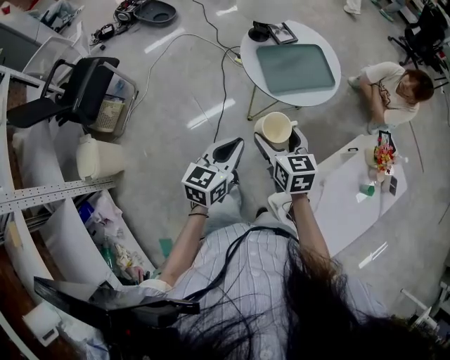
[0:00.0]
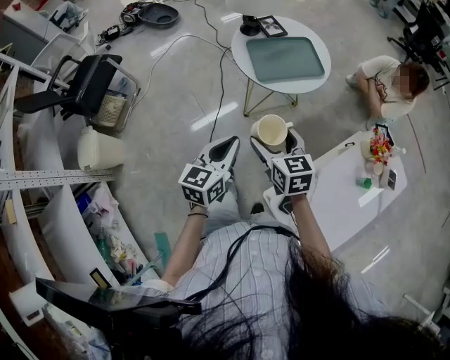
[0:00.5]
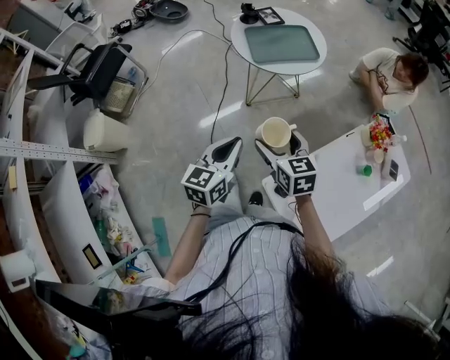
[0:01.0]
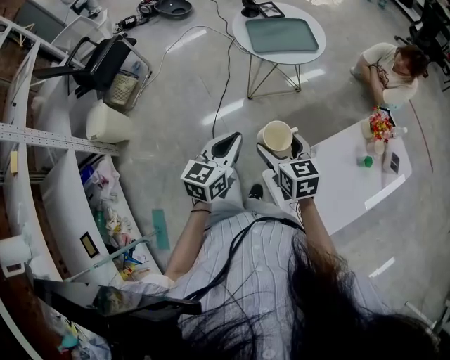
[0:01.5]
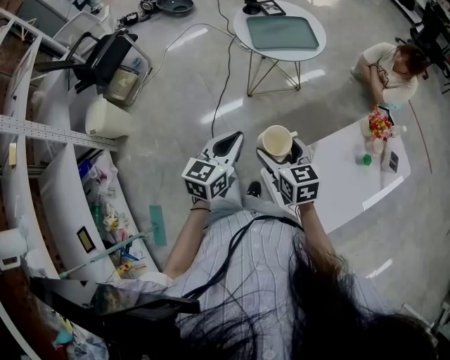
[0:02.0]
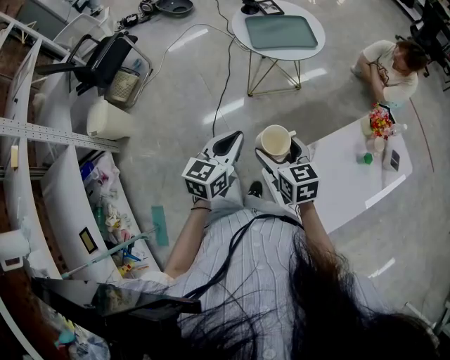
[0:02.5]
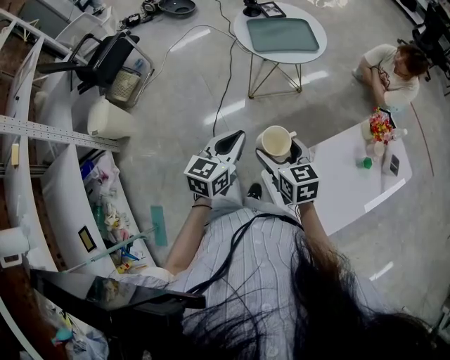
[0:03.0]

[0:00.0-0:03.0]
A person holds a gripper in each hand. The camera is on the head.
0:00.0 to 0:01.5: The two grippers go about 25 cm backward and to the right.
0:01.5 to 0:03.0: The grippers make only small movements.

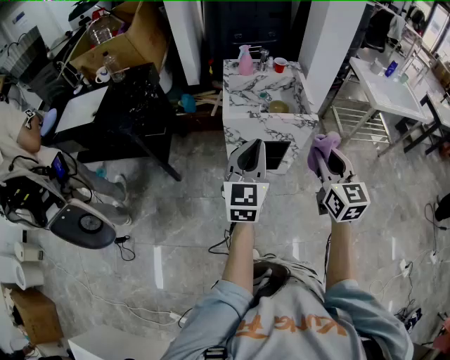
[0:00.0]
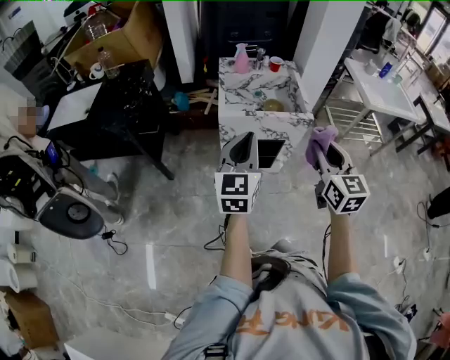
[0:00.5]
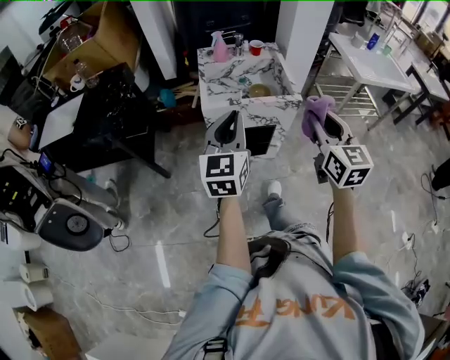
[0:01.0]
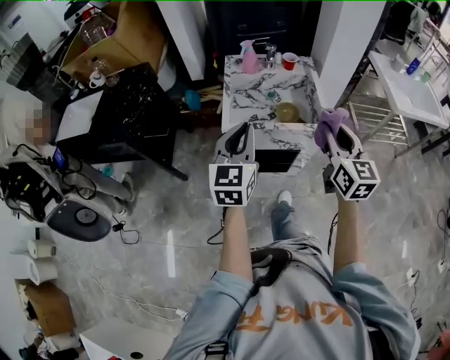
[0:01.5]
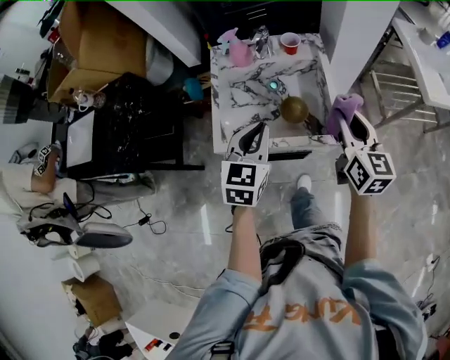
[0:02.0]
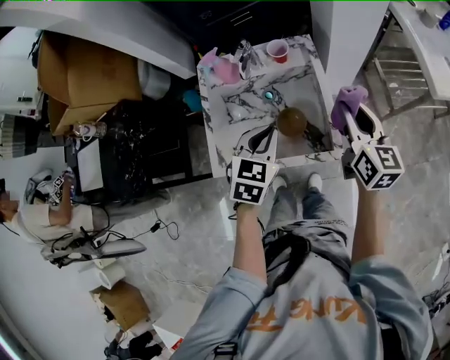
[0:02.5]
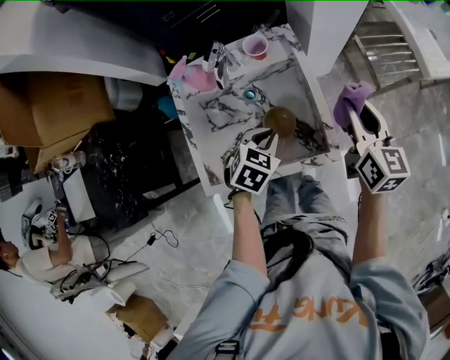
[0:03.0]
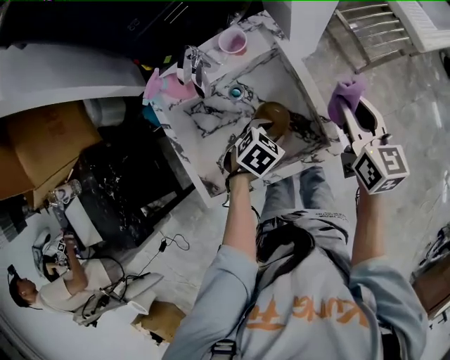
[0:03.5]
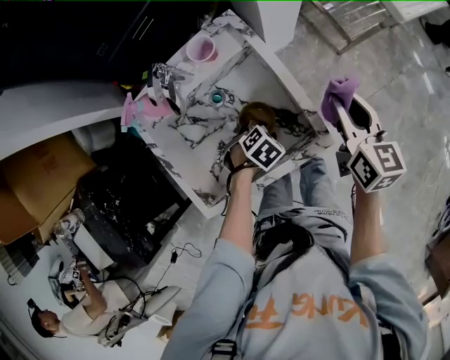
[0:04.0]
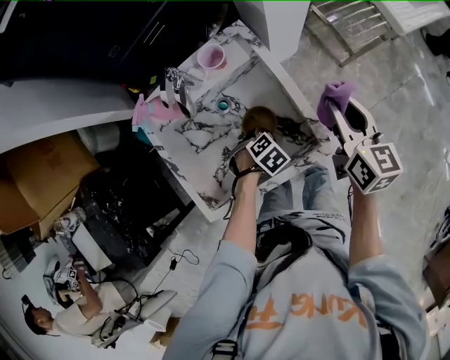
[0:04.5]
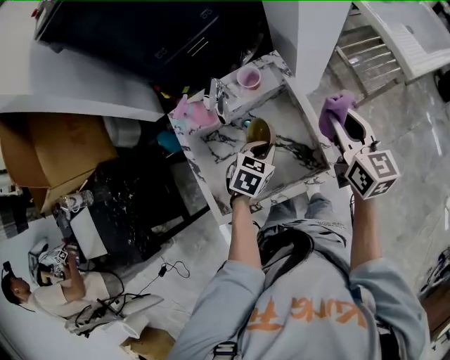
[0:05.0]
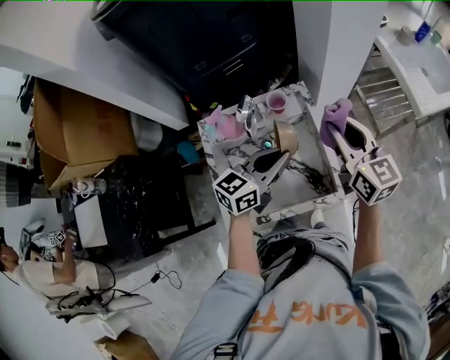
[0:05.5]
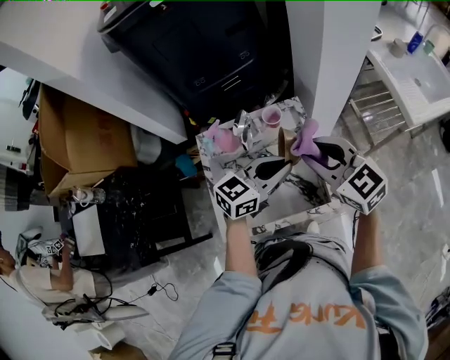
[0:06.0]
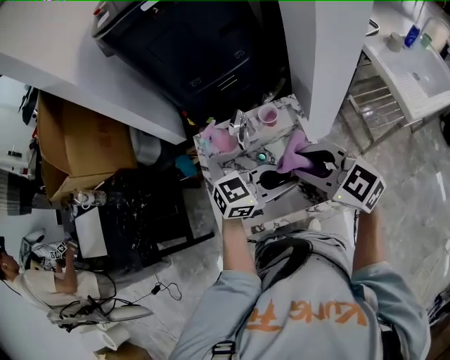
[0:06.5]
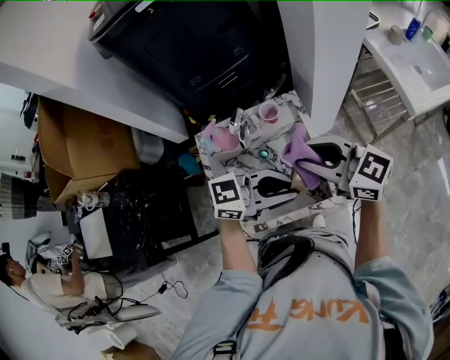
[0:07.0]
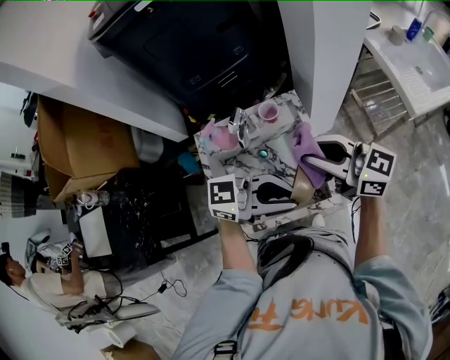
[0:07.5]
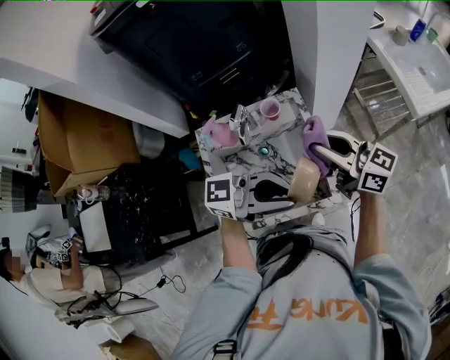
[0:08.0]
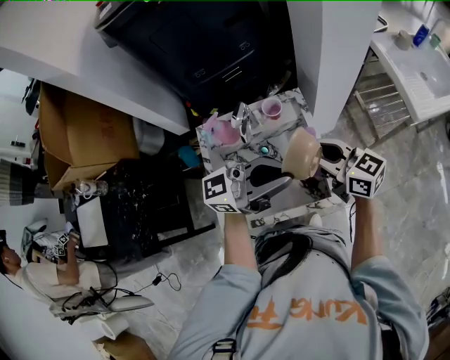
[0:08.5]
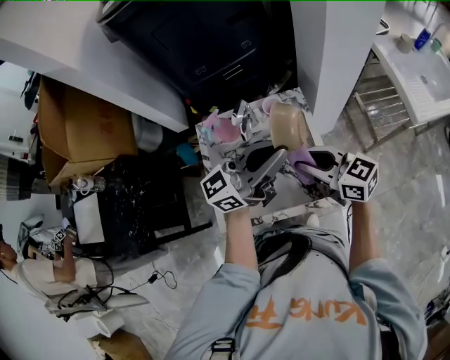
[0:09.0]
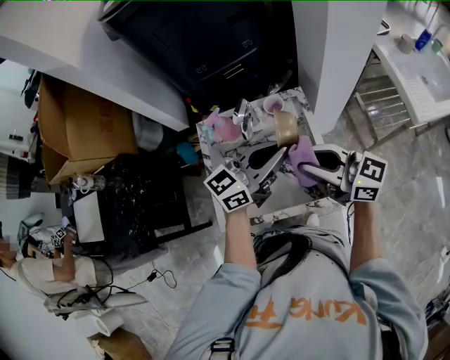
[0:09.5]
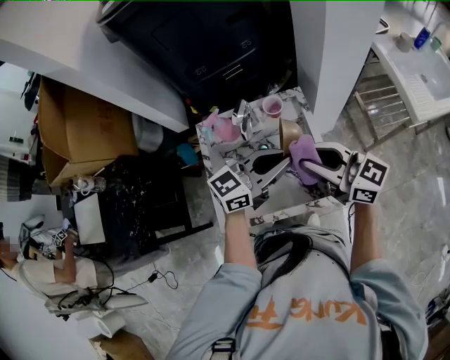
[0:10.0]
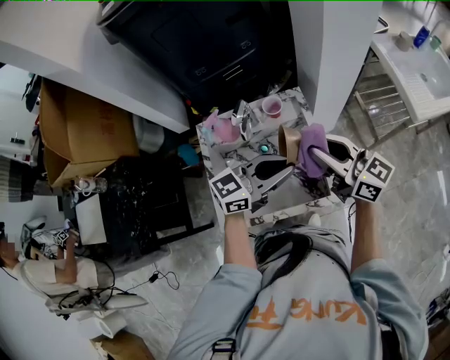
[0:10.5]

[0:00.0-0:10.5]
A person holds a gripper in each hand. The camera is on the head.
0:00.0 to 0:02.0: The grippers both shift forward by some 35 cm. The left gripper changes its angle by some 20 degrees.
0:02.0 to 0:04.0: The right gripper shifts by approximately 15 cm, and turns by roughly 30 degrees; the left gripper heads downward, covering about 30 cm, tips its fingers downward by roughly 50 degrees, and opens up.
0:04.0 to 0:06.5: The right gripper changes place by approximately 25 cm, and changes its angle by about 70 degrees. Meanwhile the left gripper goes some 35 cm upward, tips its fingers upward by roughly 60 degrees, and closes its fingers.
0:06.5 to 0:08.5: The left gripper goes about 10 cm upward, and points its fingers about 40 degrees further upward; the right gripper moves approximately 5 cm, and rotates approximately 30 degrees.
0:08.5 to 0:10.5: The left gripper travels downward by some 10 cm, and rotates some 30 degrees.

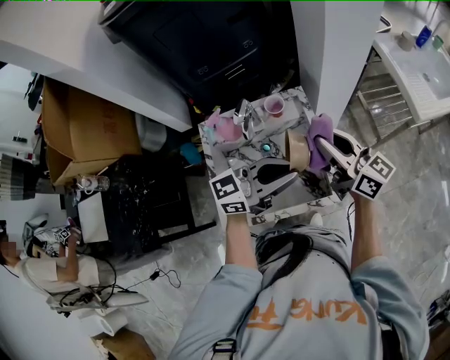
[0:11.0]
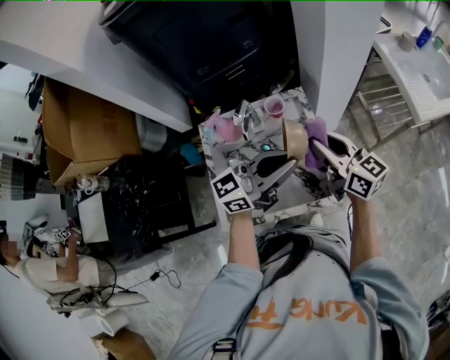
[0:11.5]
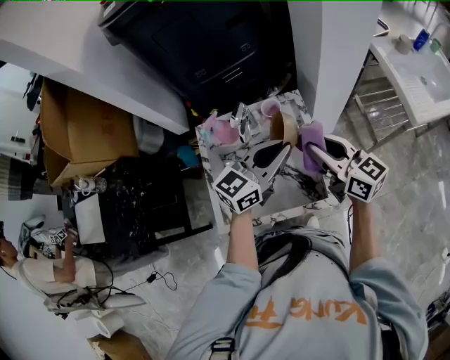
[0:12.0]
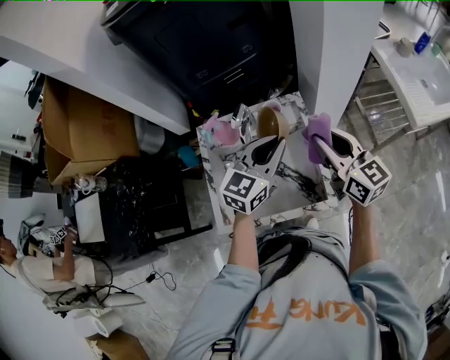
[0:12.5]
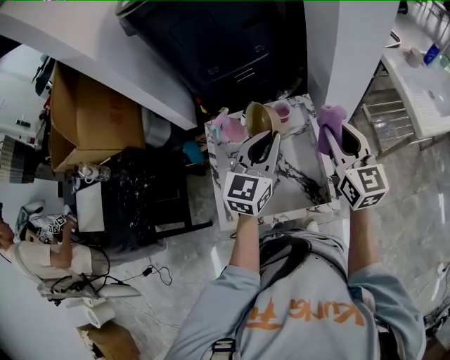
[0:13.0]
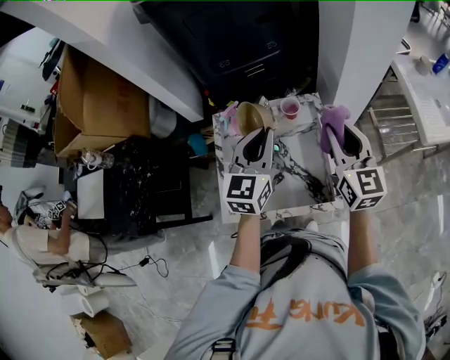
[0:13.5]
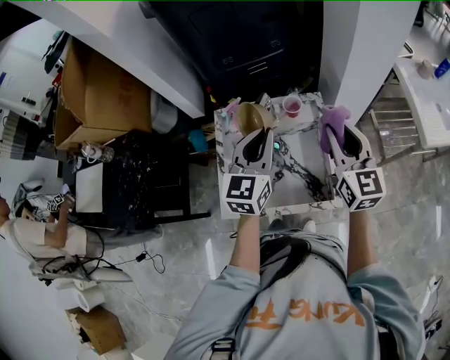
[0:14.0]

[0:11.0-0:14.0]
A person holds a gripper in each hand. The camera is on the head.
0:11.0 to 0:12.5: The left gripper shifts about 10 cm forward, and rotates some 40 degrees.
0:12.5 to 0:14.0: The left gripper shifts approximately 10 cm to the left, and turns by about 30 degrees.

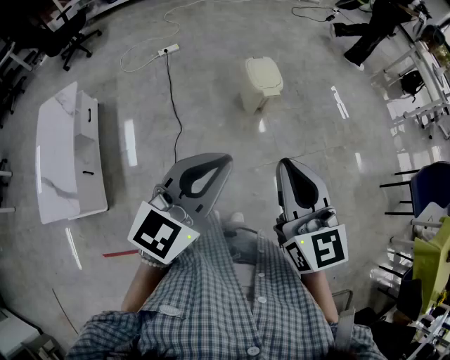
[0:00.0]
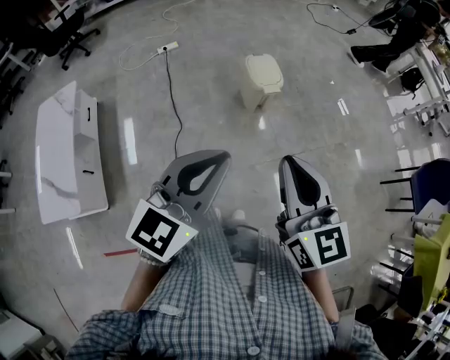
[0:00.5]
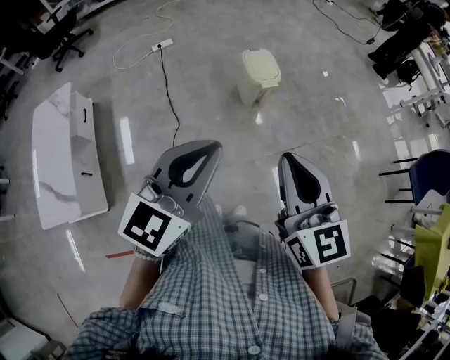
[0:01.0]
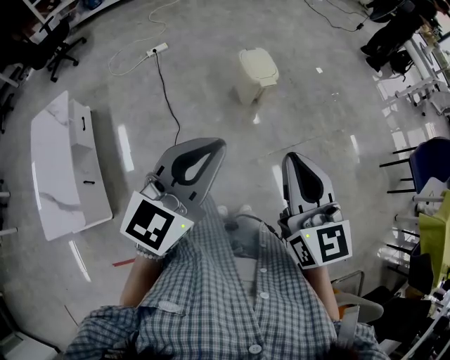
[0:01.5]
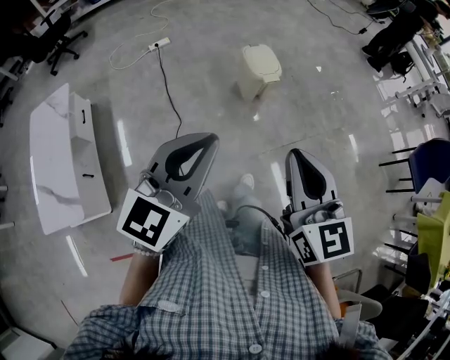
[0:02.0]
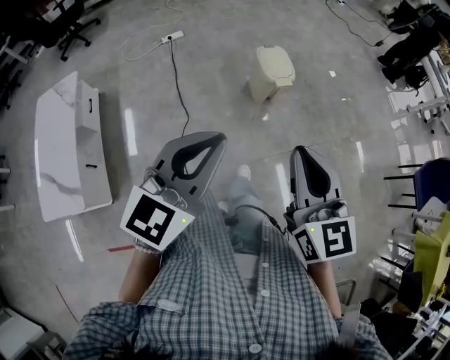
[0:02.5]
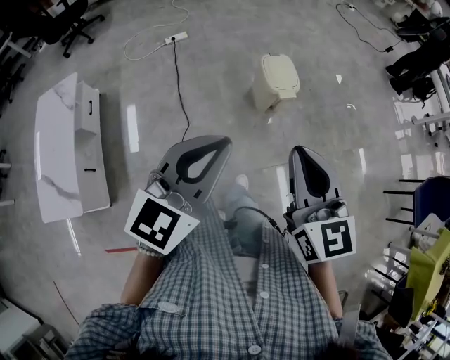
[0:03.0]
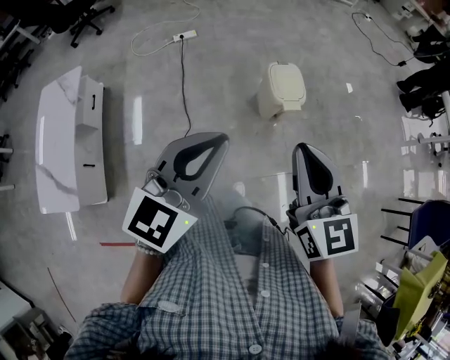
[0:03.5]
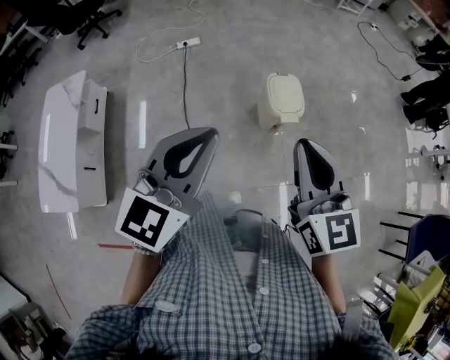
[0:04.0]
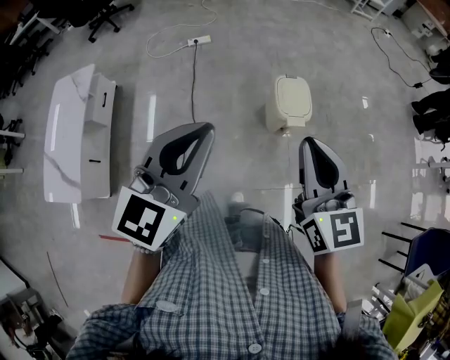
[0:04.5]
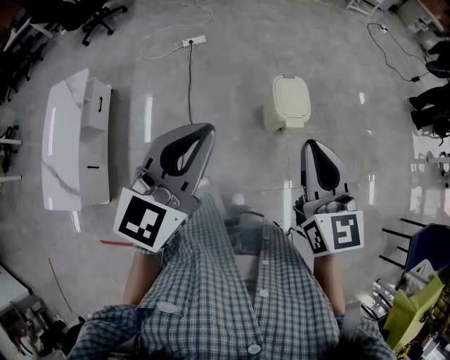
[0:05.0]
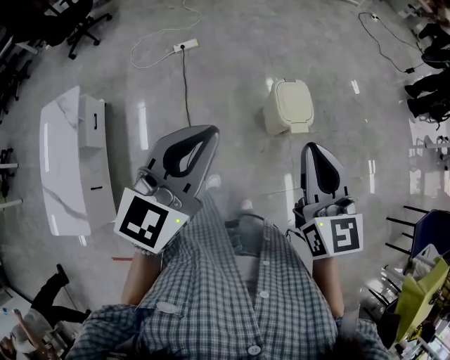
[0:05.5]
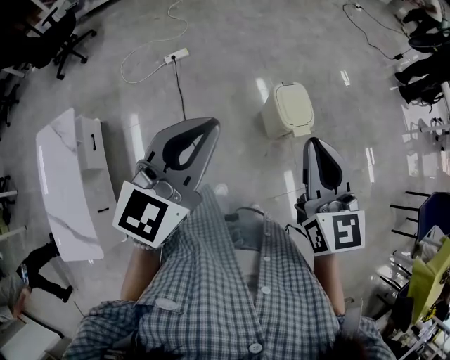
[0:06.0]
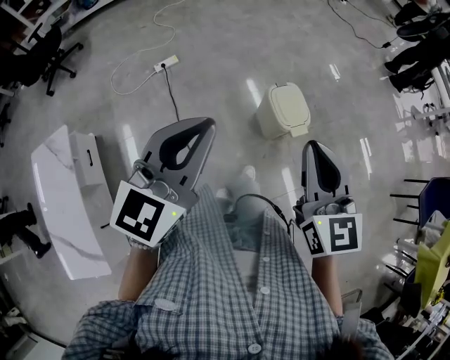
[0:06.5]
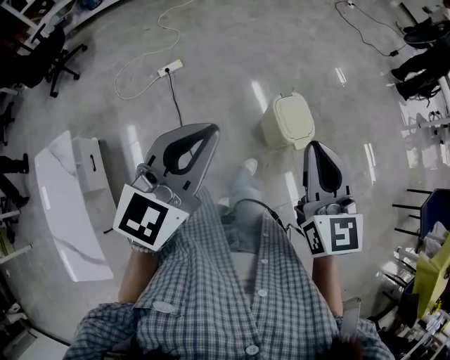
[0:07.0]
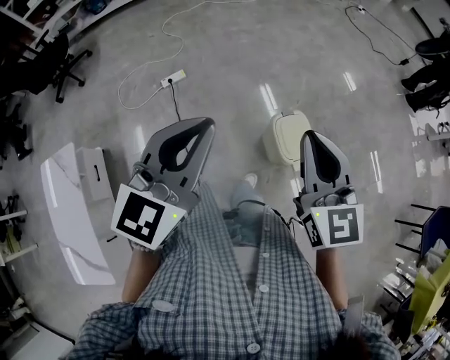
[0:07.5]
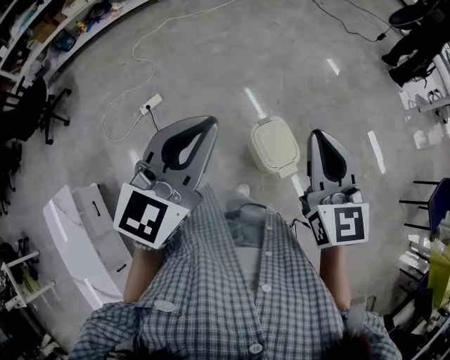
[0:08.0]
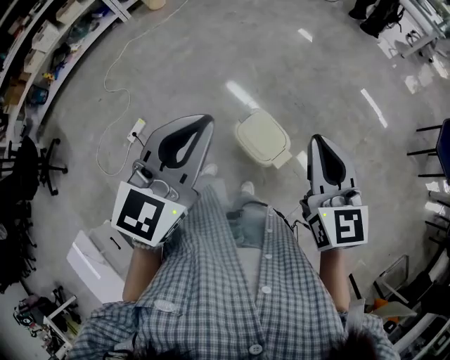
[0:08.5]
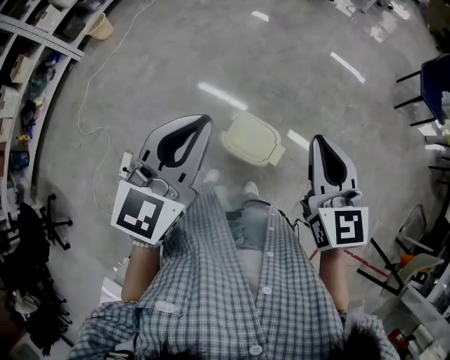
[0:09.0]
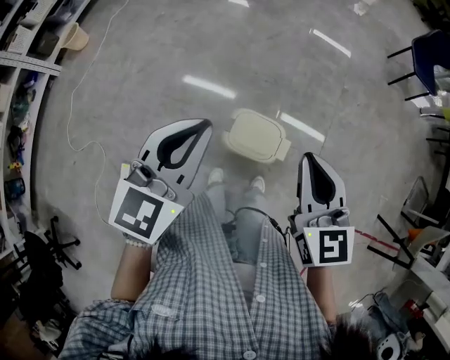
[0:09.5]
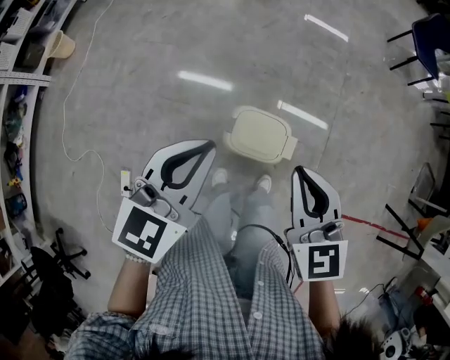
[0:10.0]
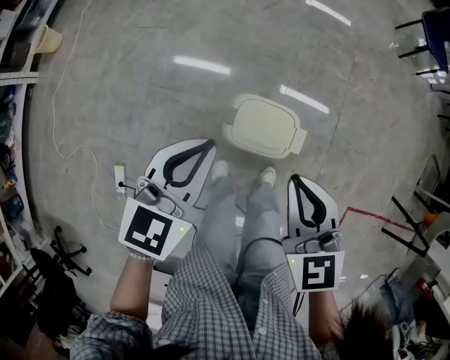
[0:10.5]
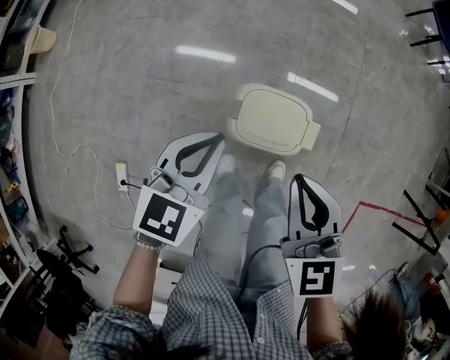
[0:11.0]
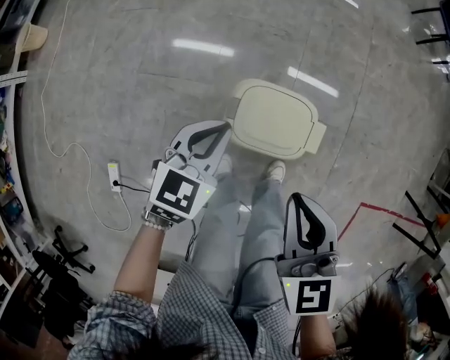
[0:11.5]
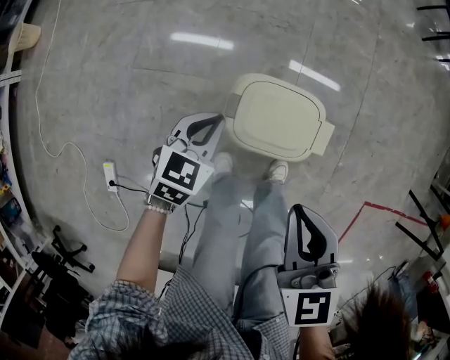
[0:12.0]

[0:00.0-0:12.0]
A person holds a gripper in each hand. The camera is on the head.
0:00.0 to 0:02.0: The left gripper shifts roughly 10 cm to the left.
0:02.0 to 0:04.0: The grippers both shift forward by some 25 cm.
0:04.0 to 0:06.0: The grippers both shift forward and to the left by about 15 cm.
0:06.0 to 0:08.0: The two grippers go about 25 cm forward.
0:08.0 to 0:10.0: The left gripper moves some 25 cm, and rotates roughly 50 degrees. Meanwhile the right gripper is displaced downward by approximately 15 cm, and changes its angle by roughly 40 degrees.
0:10.0 to 0:12.0: The right gripper moves downward, roughly 20 cm. Meanwhile the left gripper goes approximately 40 cm downward, and rotates roughly 20 degrees.
